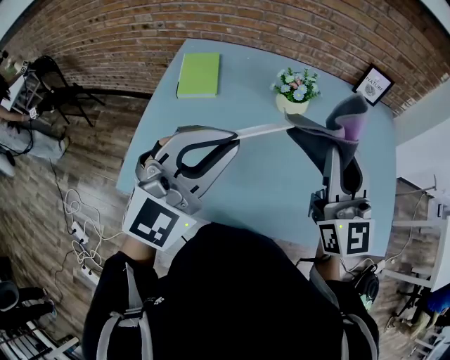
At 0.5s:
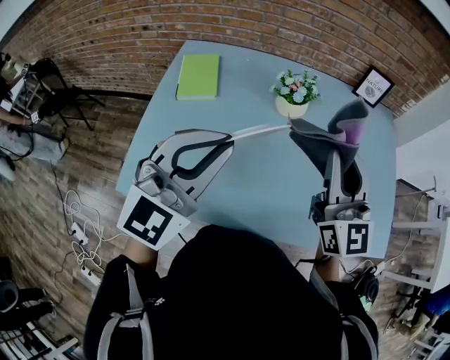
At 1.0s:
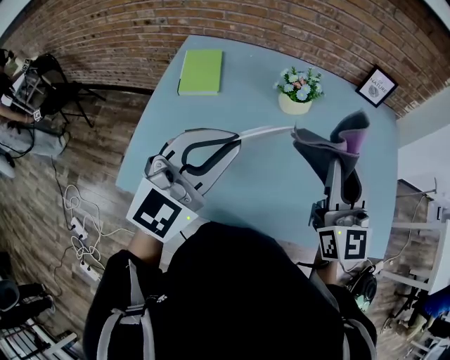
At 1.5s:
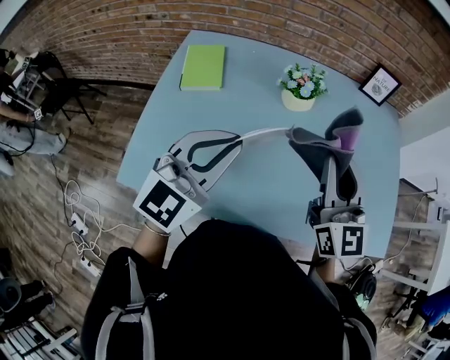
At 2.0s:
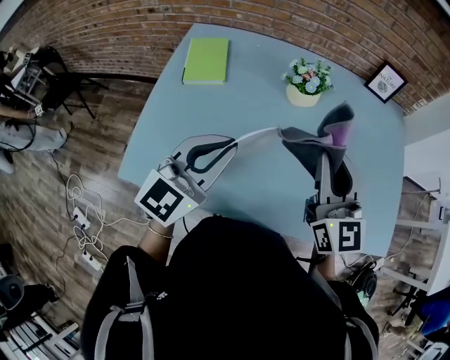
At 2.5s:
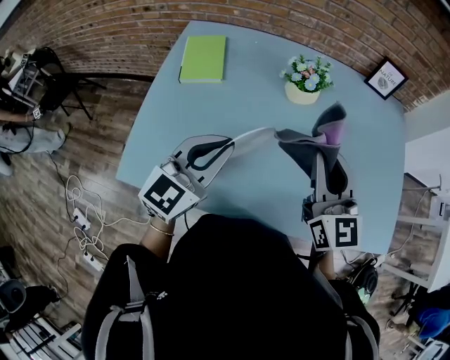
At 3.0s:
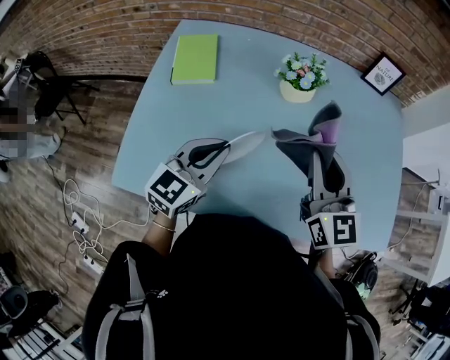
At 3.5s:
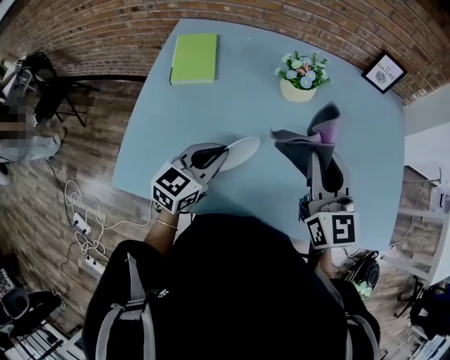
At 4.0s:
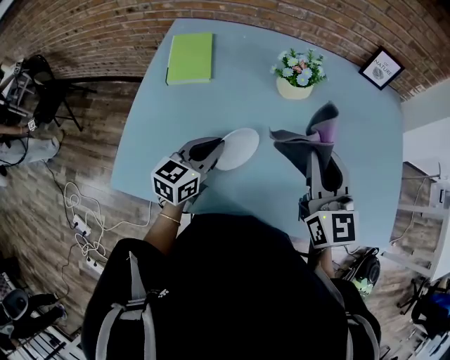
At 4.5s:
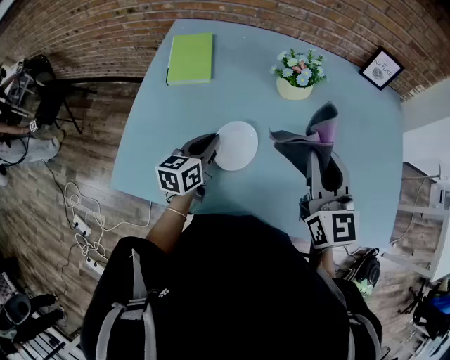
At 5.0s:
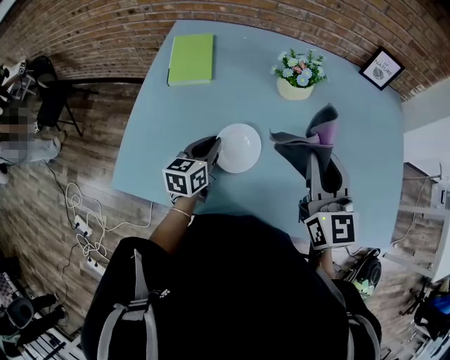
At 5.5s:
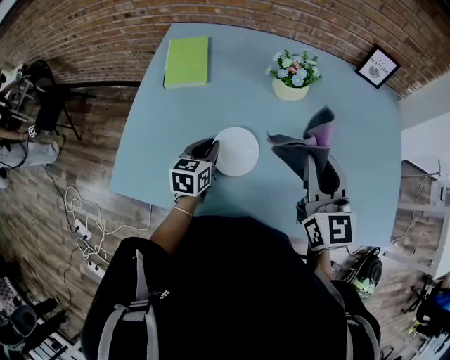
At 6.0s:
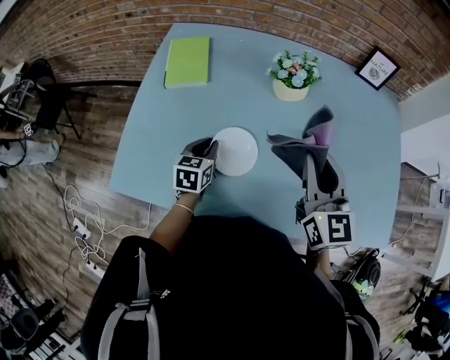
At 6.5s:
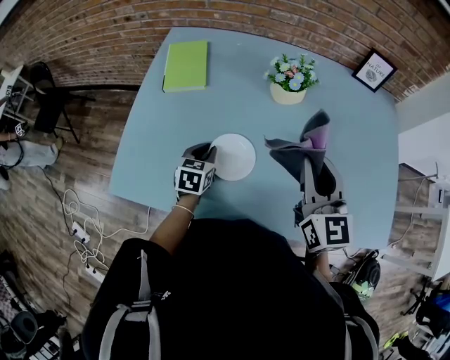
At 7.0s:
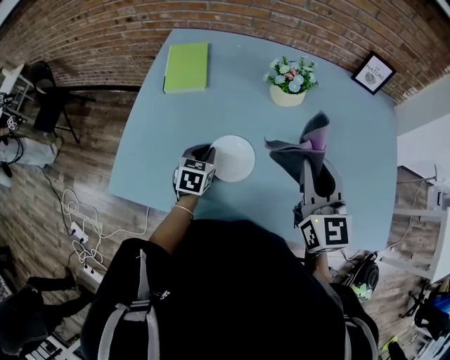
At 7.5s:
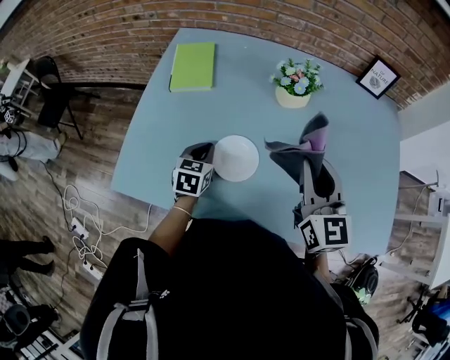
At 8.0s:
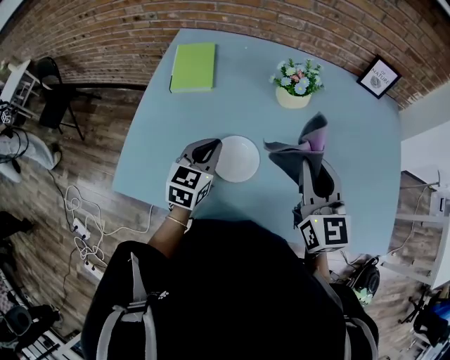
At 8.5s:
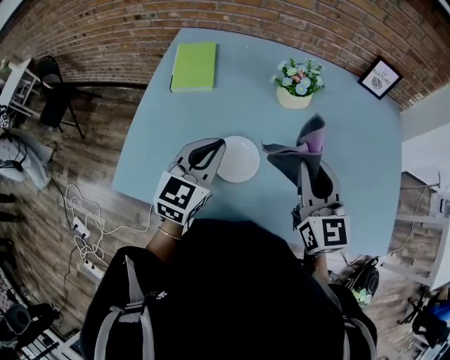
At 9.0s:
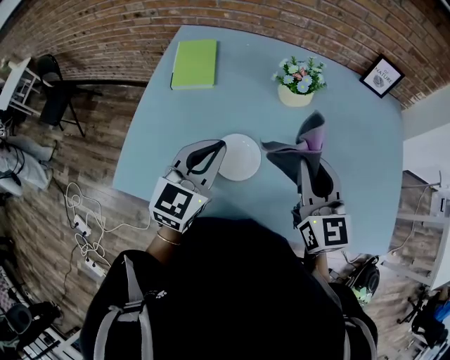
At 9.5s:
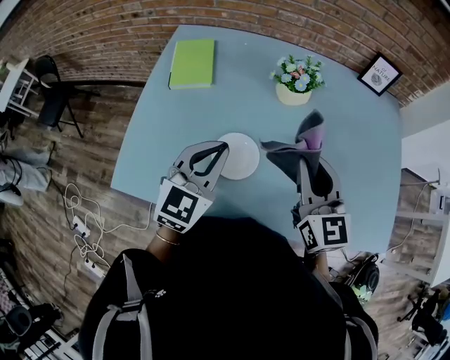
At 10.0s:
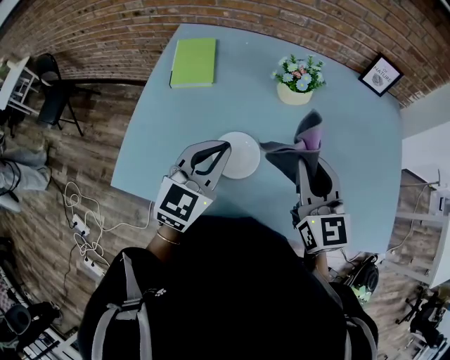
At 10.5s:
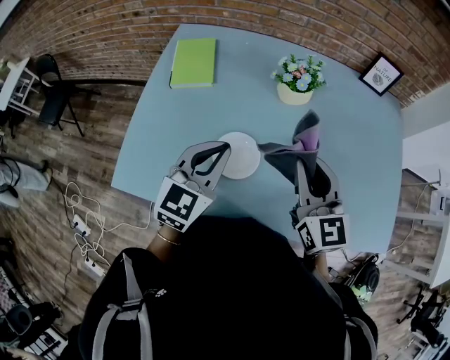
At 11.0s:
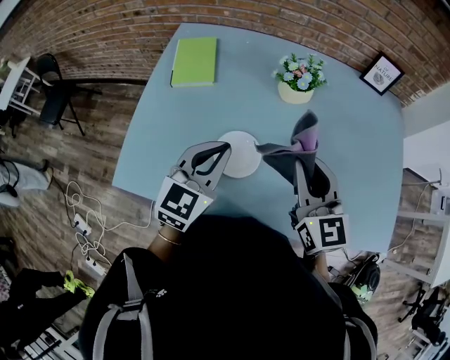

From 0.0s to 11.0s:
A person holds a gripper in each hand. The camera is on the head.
From 0.0s to 2.0s: The right gripper heads downward, covering approximately 5 cm. The left gripper is displaced downward by approximately 10 cm, and turns by roughly 30 degrees.
From 2.0s to 3.5s: The right gripper ends up about 5 cm from where it was; the left gripper travels downward by about 15 cm.
From 3.5s to 5.5s: The left gripper travels downward by roughly 10 cm, and turns by about 30 degrees.
From 5.5s to 7.5s: The grippers make only small movements.
From 7.5s to 9.0s: The left gripper moves upward, some 20 cm, and swivels about 30 degrees.
From 9.0s to 11.0s: There are only small adjustments of the grippers.

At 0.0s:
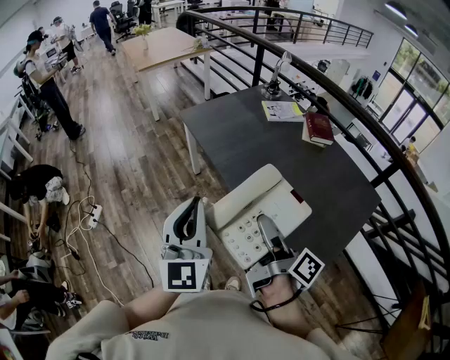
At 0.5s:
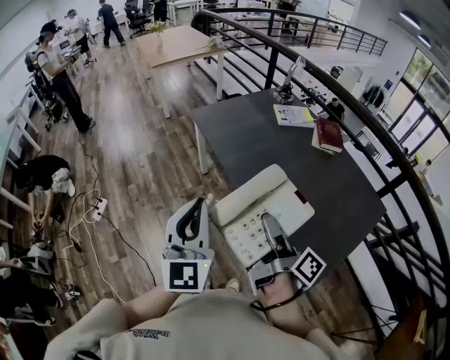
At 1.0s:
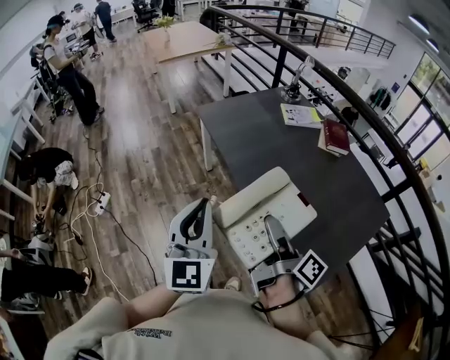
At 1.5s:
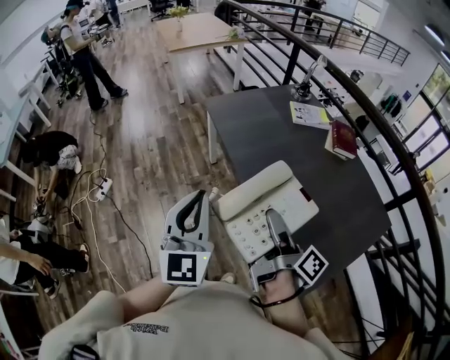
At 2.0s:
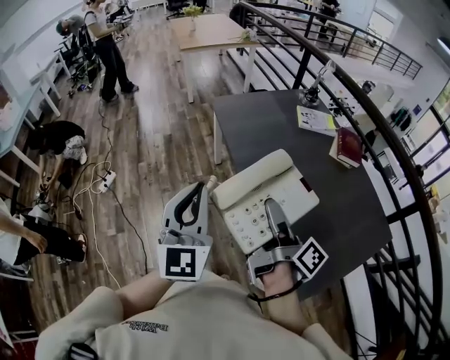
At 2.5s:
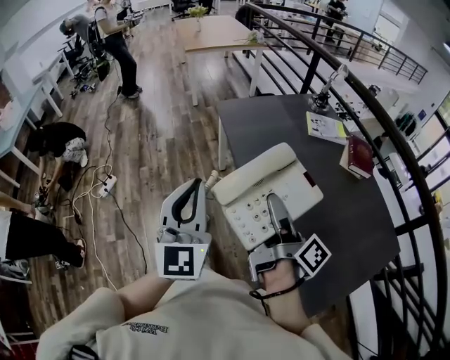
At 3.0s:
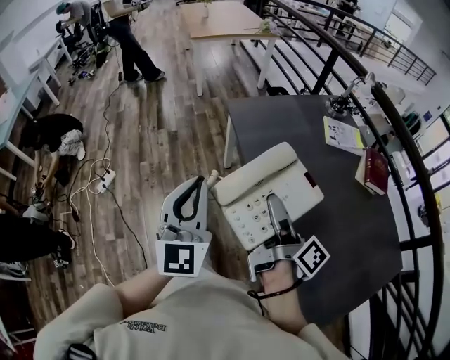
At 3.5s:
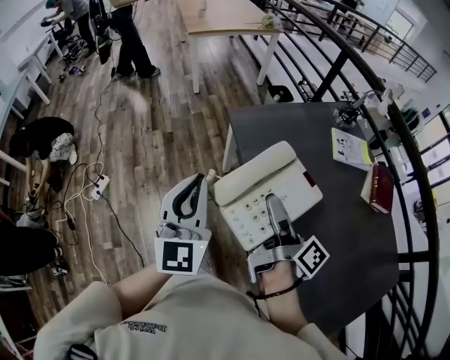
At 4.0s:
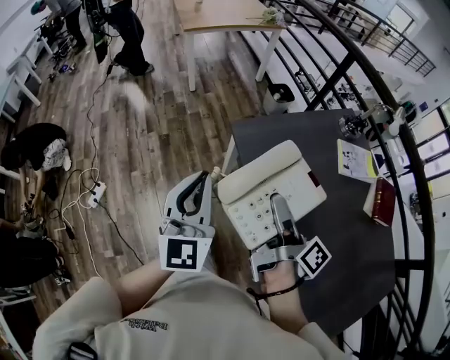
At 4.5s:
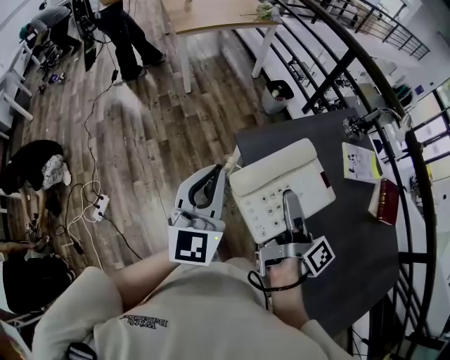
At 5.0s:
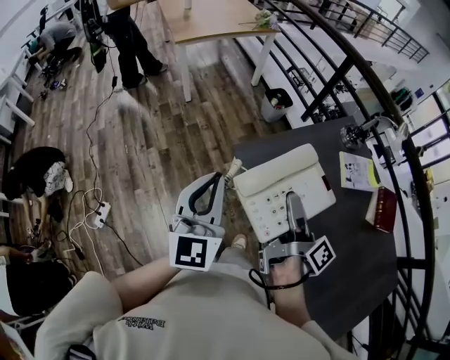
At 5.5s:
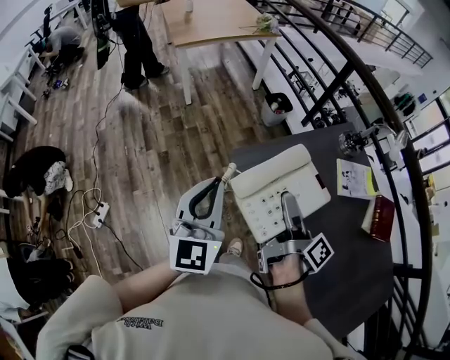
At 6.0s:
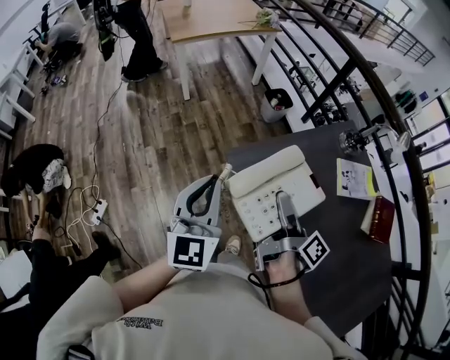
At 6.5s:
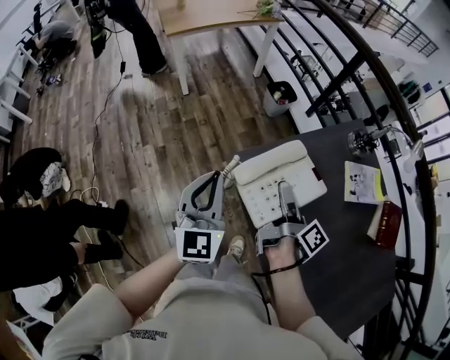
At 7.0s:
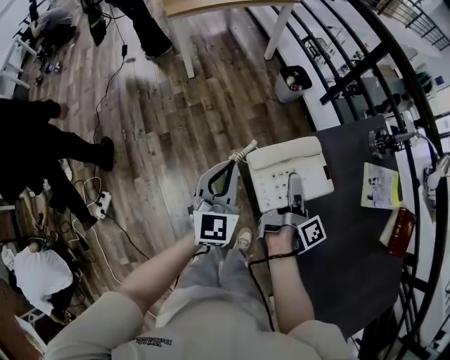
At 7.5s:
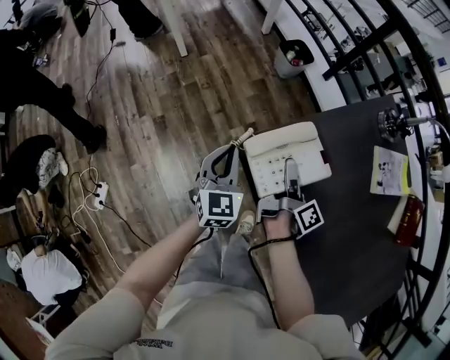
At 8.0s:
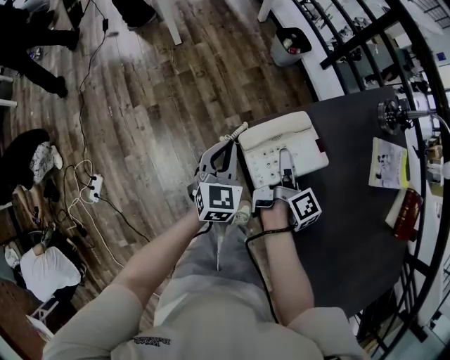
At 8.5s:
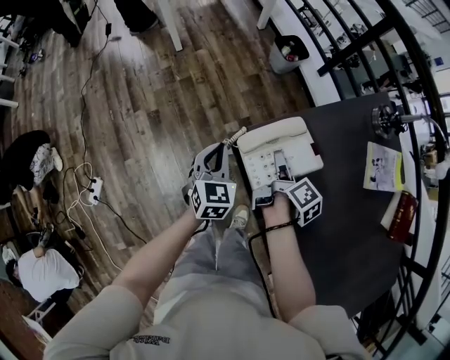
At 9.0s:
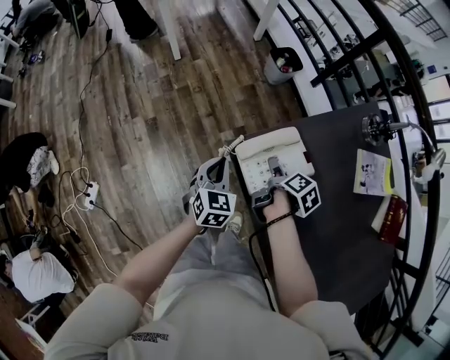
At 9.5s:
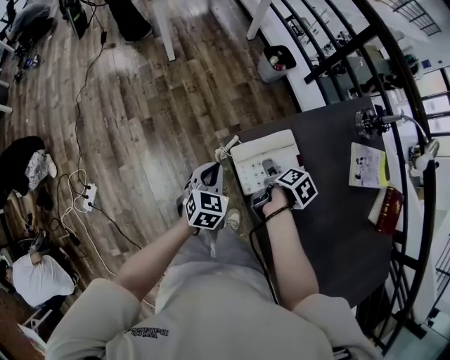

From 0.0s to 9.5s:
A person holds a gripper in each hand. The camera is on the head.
From 2.0s to 4.0s: The left gripper ends up roughly 50 cm from where it was.
From 4.0s to 5.5s: The left gripper ends up about 15 cm from where it was.
From 5.5s to 7.5s: The left gripper is displaced downward by roughly 30 cm, and changes its angle by about 20 degrees.
From 7.5s to 9.5s: The left gripper ends up about 5 cm from where it was.

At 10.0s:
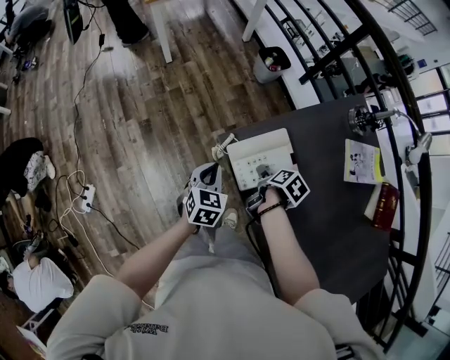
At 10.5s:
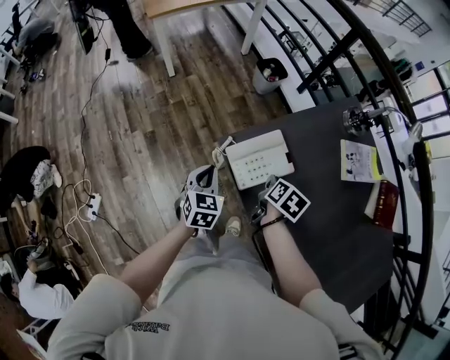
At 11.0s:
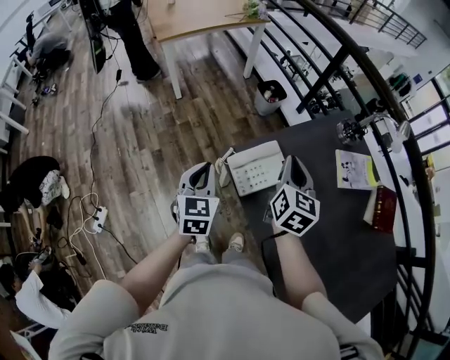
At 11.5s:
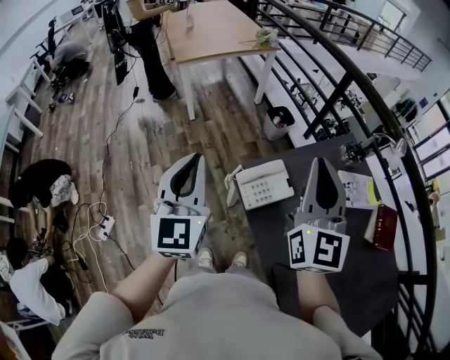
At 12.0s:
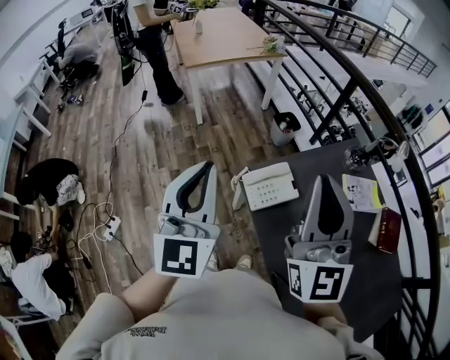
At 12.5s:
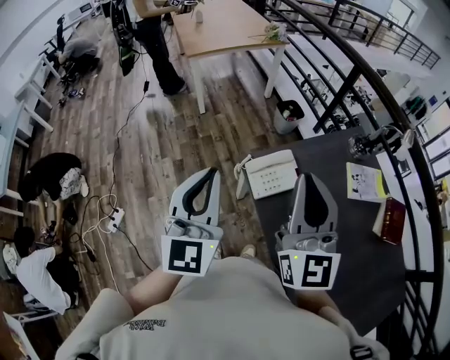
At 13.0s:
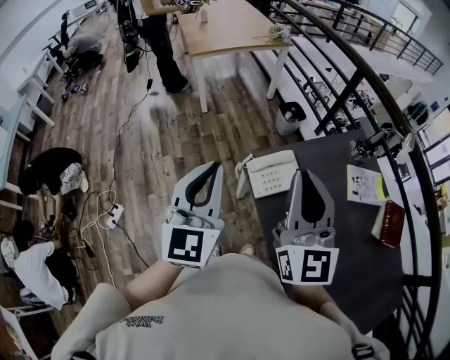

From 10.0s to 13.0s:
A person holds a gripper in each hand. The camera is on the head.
From 10.0s to 11.5s: The left gripper is displaced upward by about 40 cm, and points its fingers some 40 degrees further upward.
From 11.5s to 13.0s: The left gripper changes place by about 5 cm.

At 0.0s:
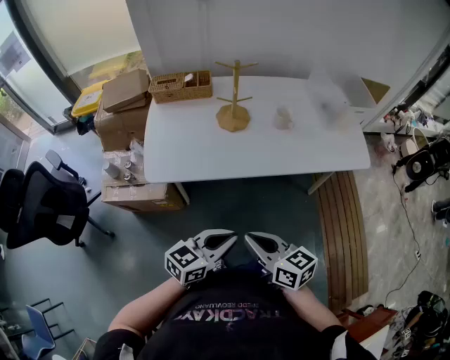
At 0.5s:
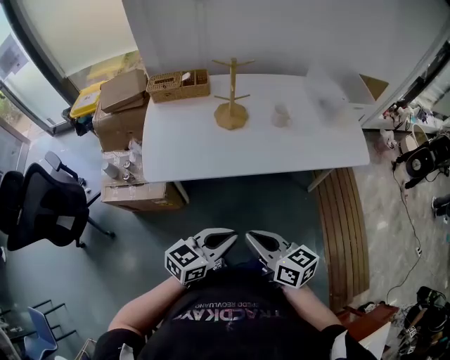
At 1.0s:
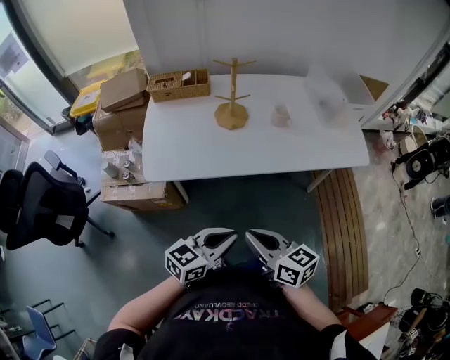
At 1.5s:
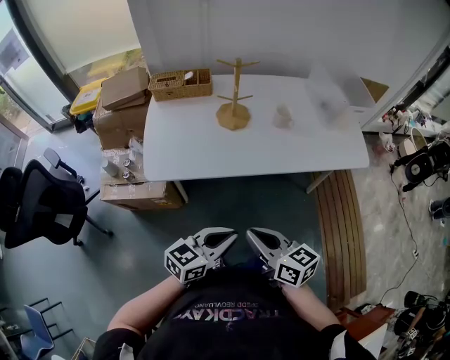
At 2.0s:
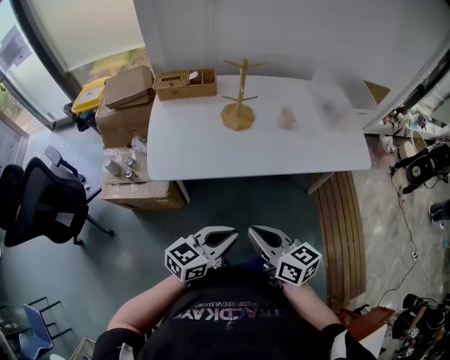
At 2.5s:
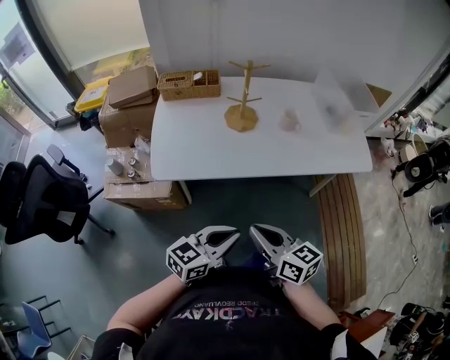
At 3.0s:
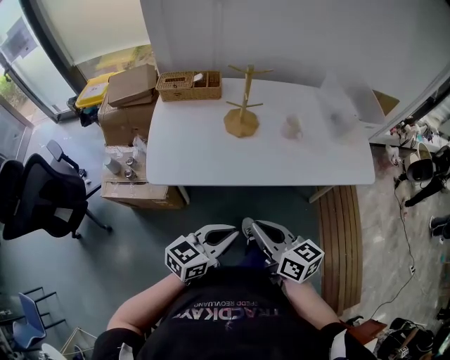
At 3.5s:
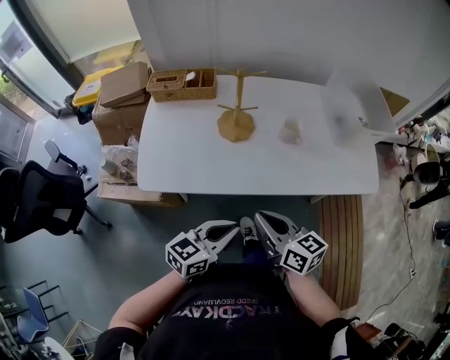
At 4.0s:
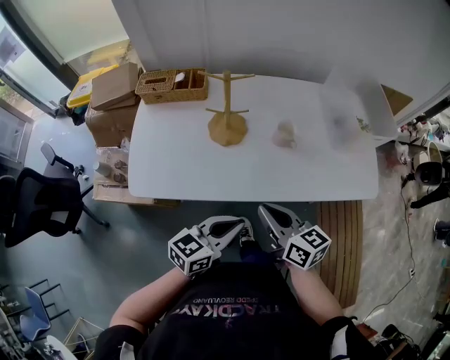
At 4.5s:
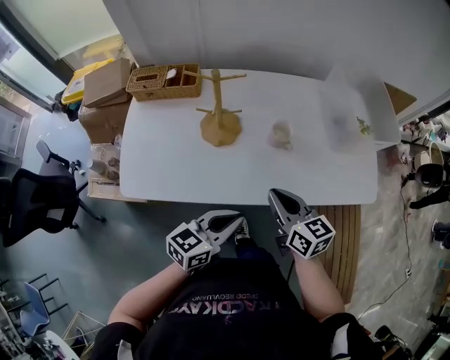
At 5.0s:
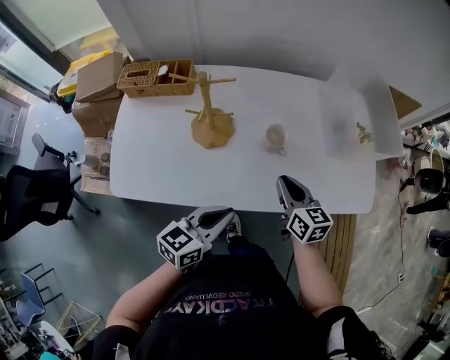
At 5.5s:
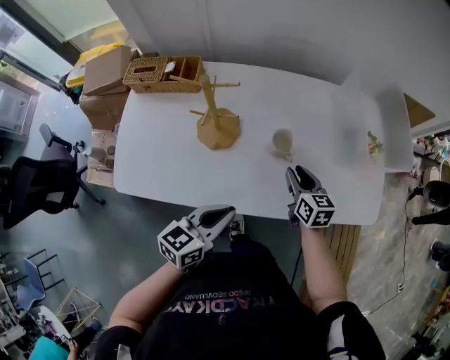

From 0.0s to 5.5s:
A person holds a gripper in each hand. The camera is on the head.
From 0.0s to 2.0s: There are only small adjustments of the grippers.
From 2.0s to 3.5s: Both grippers move forward, roughly 15 cm.
From 3.5s to 5.5s: The right gripper is displaced forward, to the right and downward by roughly 35 cm, turns by approximately 20 degrees, and opens its fingers. The left gripper heads forward, covering about 15 cm.
